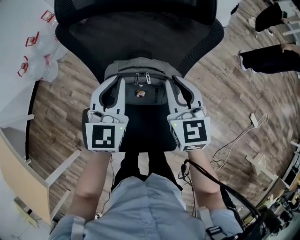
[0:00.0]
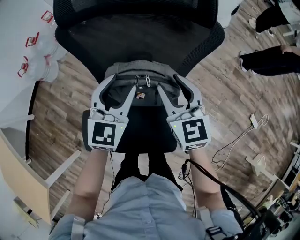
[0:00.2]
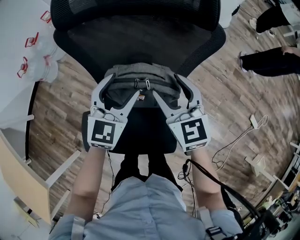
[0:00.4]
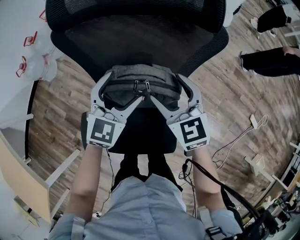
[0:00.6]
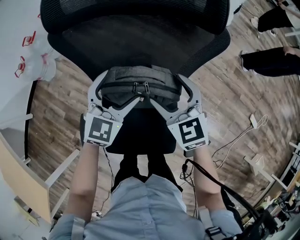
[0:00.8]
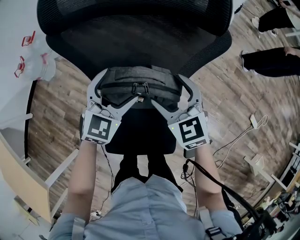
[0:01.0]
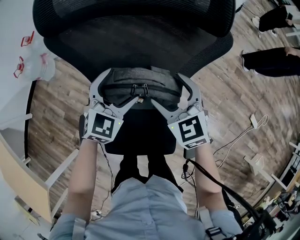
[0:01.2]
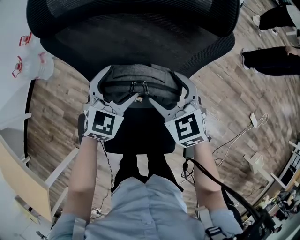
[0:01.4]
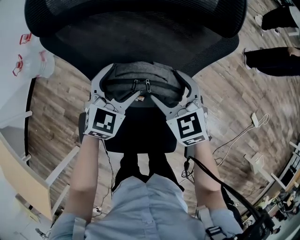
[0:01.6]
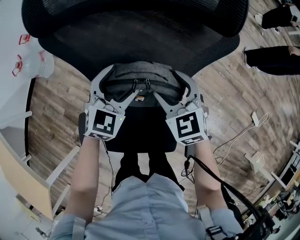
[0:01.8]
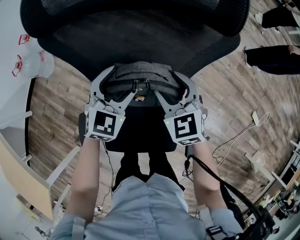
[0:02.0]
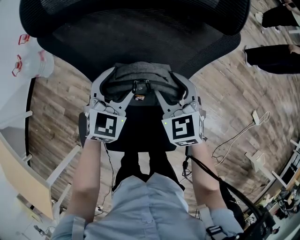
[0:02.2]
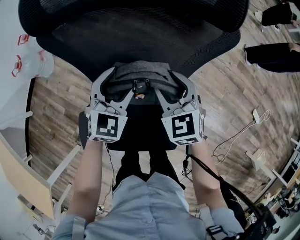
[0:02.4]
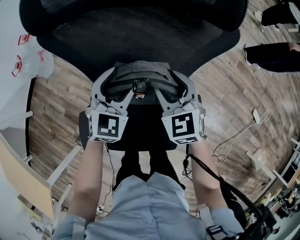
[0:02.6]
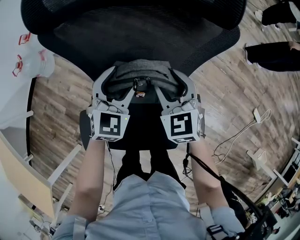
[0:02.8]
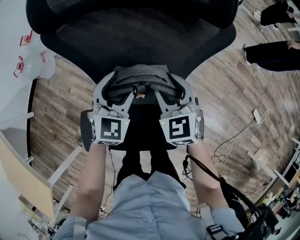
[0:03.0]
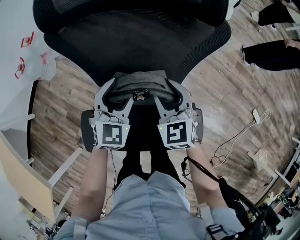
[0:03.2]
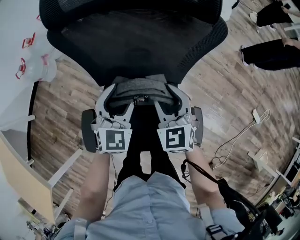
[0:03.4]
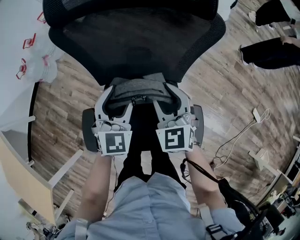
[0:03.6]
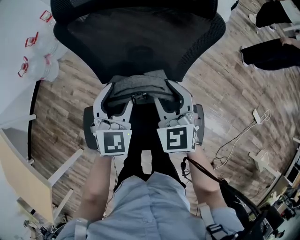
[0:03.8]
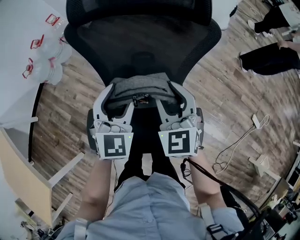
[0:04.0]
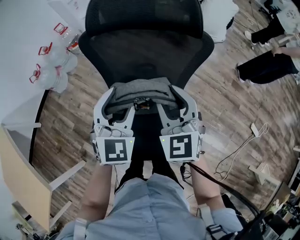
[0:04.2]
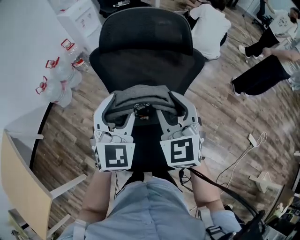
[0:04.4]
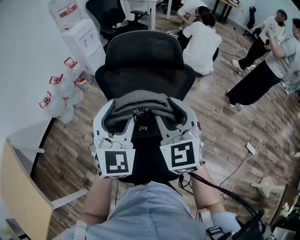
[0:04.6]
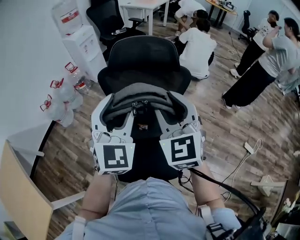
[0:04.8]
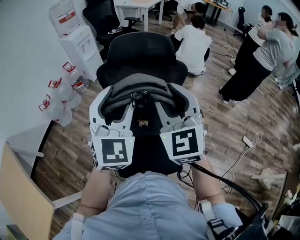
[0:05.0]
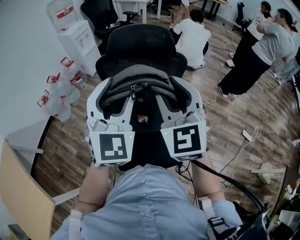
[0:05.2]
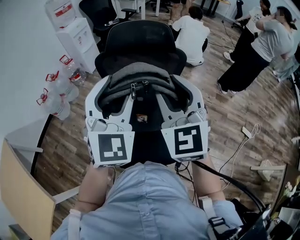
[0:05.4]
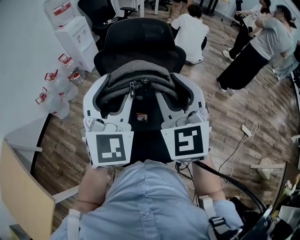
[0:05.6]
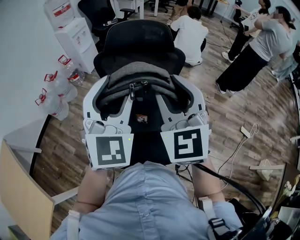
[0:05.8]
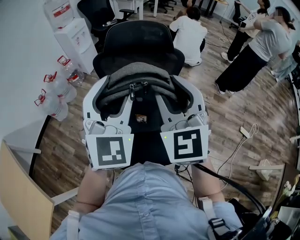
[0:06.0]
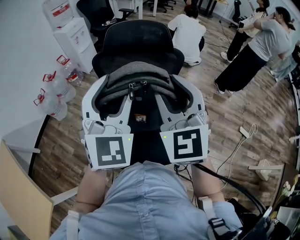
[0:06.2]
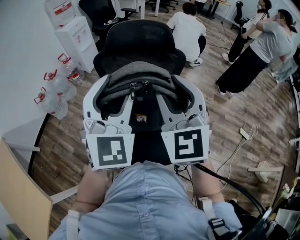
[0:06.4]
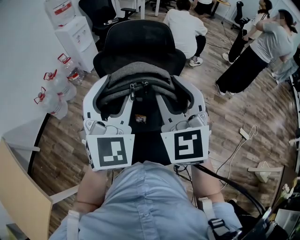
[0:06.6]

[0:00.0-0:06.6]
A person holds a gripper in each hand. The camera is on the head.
0.0 to 1.6 s: Both grippers move downward, approximately 10 cm. The right gripper swivels approximately 20 degrees, and opens; the left gripper swivels some 30 degrees, and opens.
1.6 to 3.2 s: The left gripper closes. The right gripper closes.
3.2 to 5.0 s: The grippers both shift upward by some 30 cm. The left gripper changes its angle by approximately 30 degrees. Meanwhile the right gripper turns by approximately 30 degrees.
5.0 to 6.6 s: The grippers make only small movements.

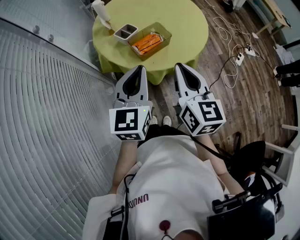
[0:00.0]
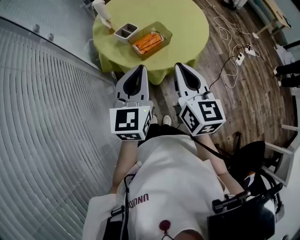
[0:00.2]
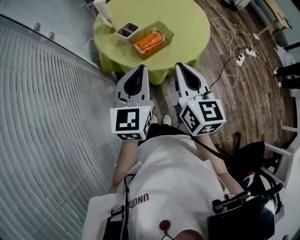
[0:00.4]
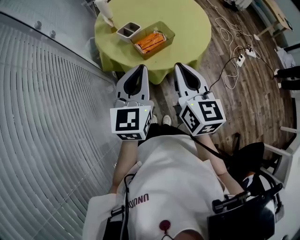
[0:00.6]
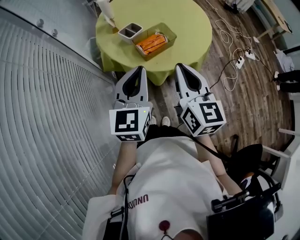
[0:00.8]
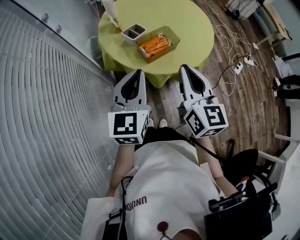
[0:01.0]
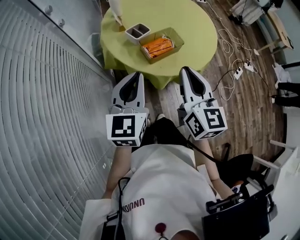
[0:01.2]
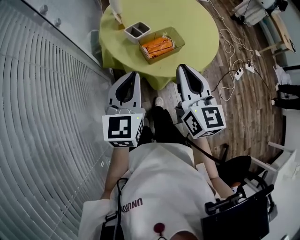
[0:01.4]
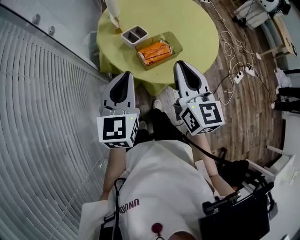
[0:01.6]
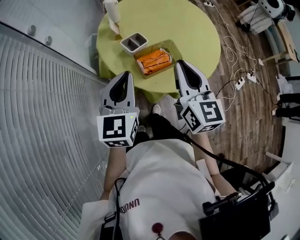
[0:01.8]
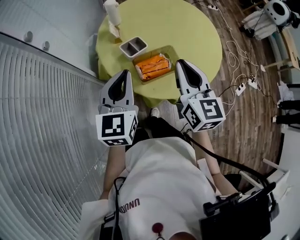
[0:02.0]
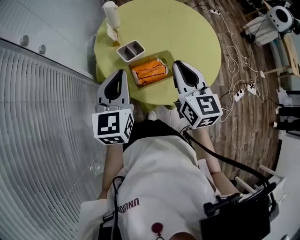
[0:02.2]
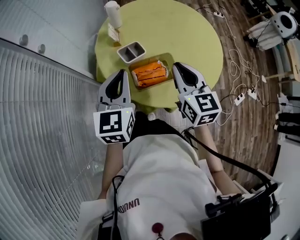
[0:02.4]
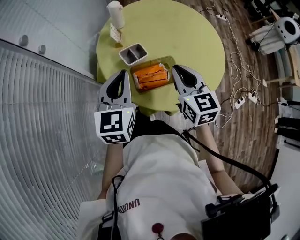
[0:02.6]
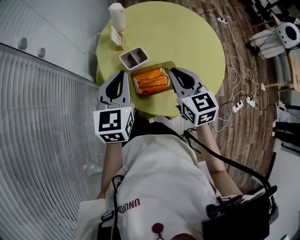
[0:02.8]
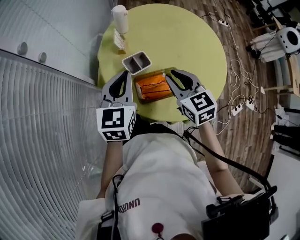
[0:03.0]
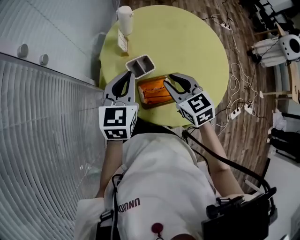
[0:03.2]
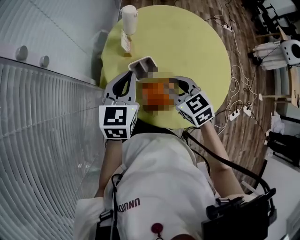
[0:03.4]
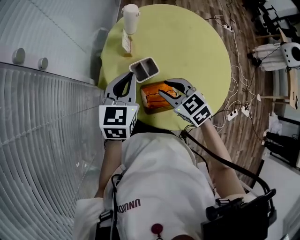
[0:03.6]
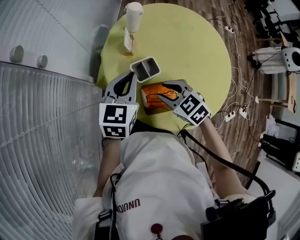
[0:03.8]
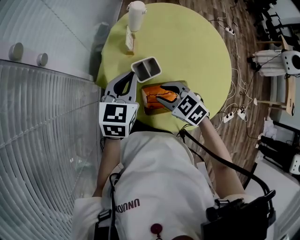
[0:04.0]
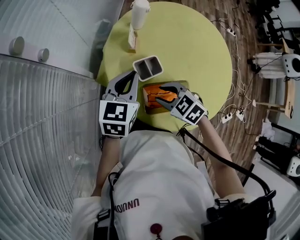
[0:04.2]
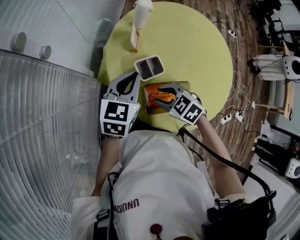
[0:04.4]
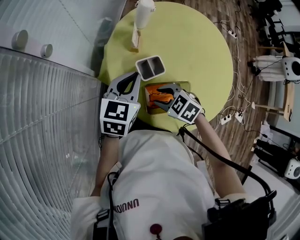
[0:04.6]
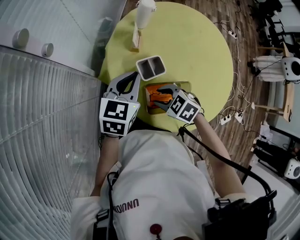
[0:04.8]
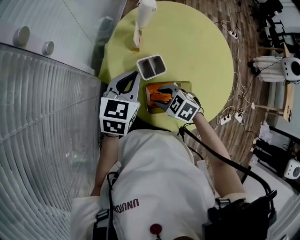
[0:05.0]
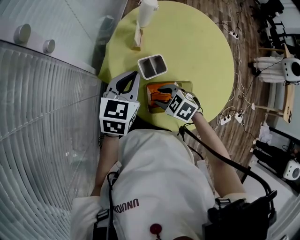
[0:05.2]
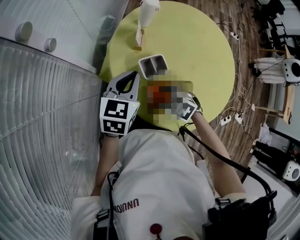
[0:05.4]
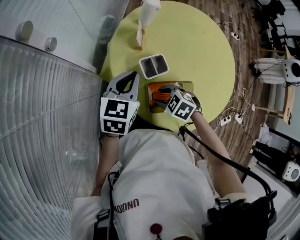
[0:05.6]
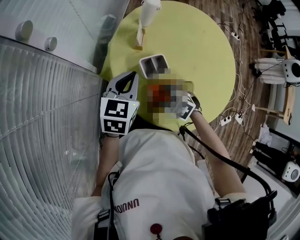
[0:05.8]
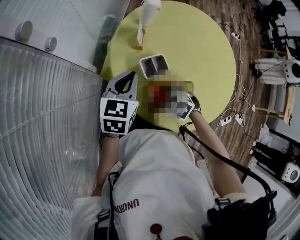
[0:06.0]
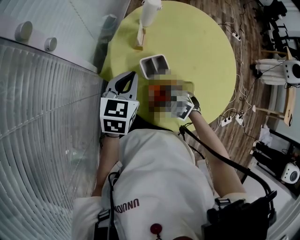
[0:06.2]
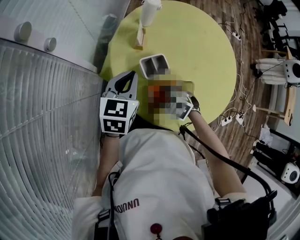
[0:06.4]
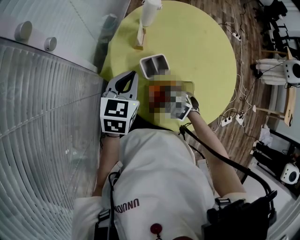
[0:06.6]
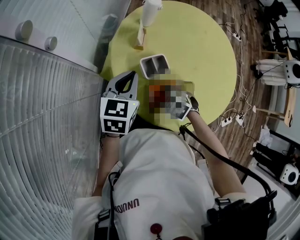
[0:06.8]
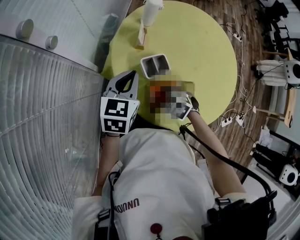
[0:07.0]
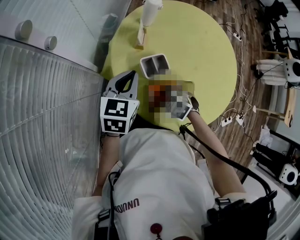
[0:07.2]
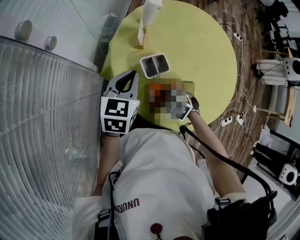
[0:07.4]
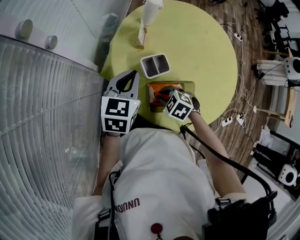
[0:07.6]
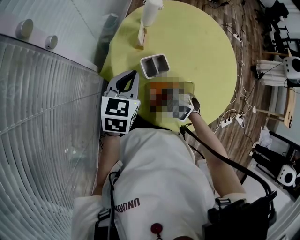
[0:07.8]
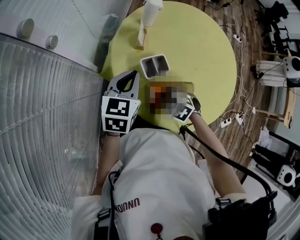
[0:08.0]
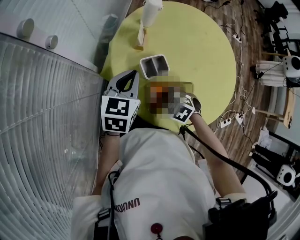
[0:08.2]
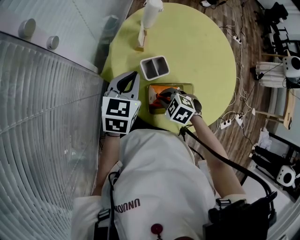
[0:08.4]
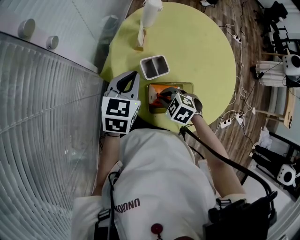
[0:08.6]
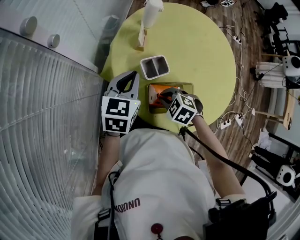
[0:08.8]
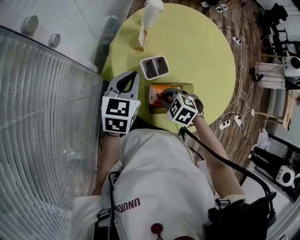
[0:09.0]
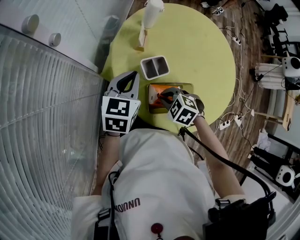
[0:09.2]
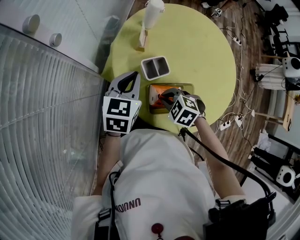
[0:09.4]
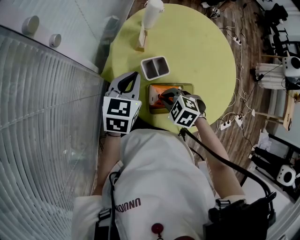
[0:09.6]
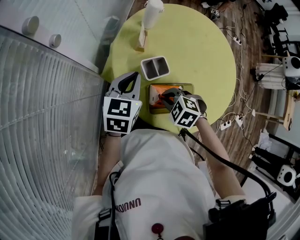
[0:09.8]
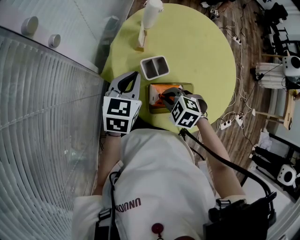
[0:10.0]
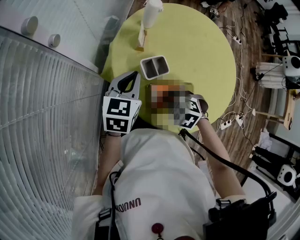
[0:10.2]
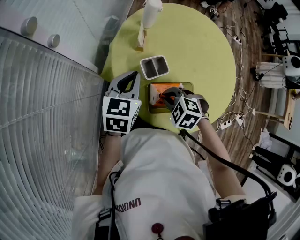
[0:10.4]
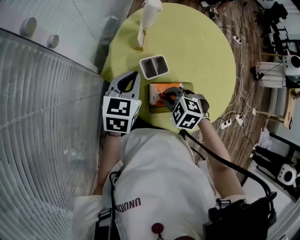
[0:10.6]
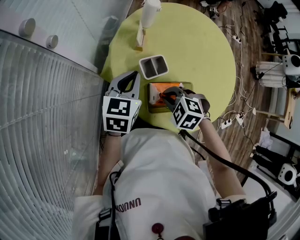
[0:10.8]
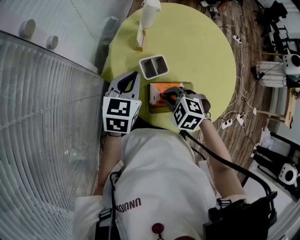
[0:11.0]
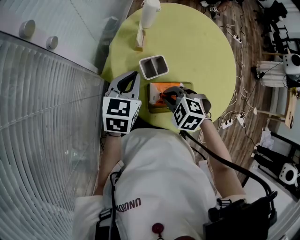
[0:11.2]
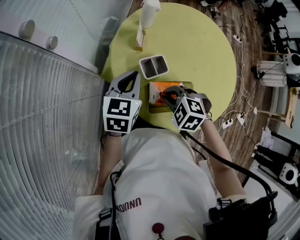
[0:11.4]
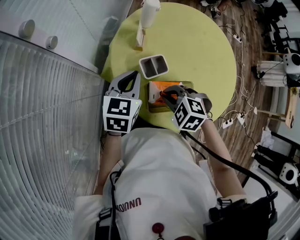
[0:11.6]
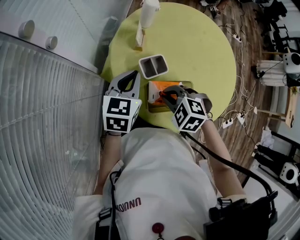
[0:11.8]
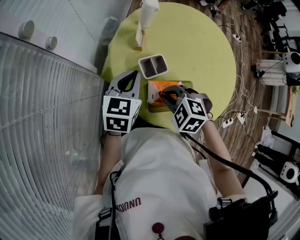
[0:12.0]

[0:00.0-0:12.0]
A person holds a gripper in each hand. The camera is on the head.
0.0 to 1.6 s: The left gripper goes some 10 cm to the left and forward; the right gripper shifts roughly 10 cm forward.
1.6 to 3.0 s: The left gripper shifts some 15 cm forward, while the right gripper heads forward and downward, covering approximately 20 cm, and changes its angle by roughly 40 degrees.
3.0 to 4.4 s: The left gripper travels downward by roughly 5 cm; the right gripper goes about 15 cm downward and to the left, swivels approximately 50 degrees, and opens its fingers.
4.4 to 6.0 s: The right gripper shifts about 5 cm downward.
6.0 to 7.6 s: The right gripper closes its fingers.
7.6 to 9.0 s: The grippers make only small movements.
9.0 to 10.4 s: There are only small adjustments of the grippers.
10.4 to 12.0 s: The grippers stay close to where they were, moving slightly.

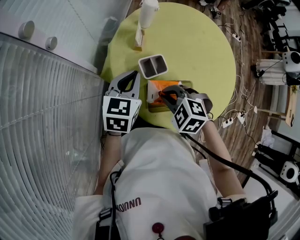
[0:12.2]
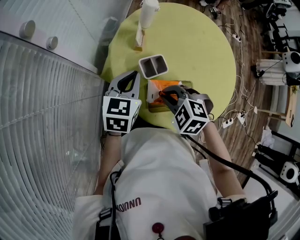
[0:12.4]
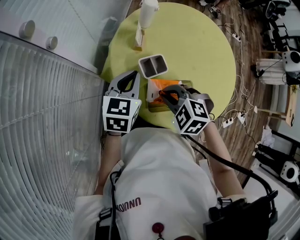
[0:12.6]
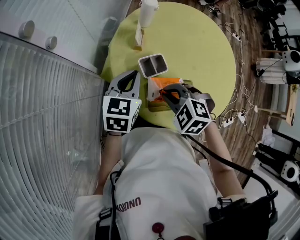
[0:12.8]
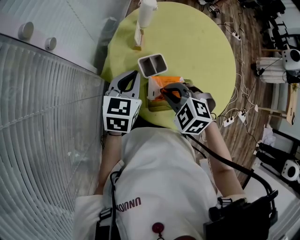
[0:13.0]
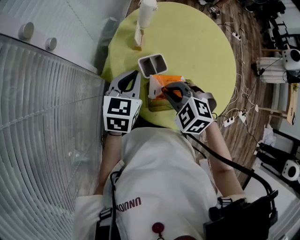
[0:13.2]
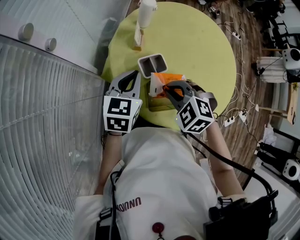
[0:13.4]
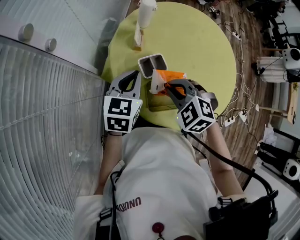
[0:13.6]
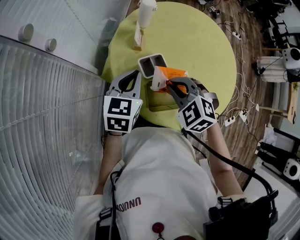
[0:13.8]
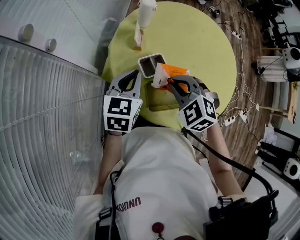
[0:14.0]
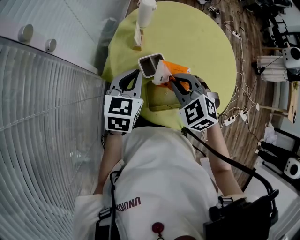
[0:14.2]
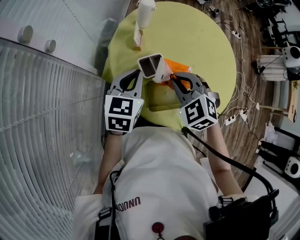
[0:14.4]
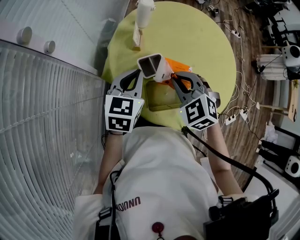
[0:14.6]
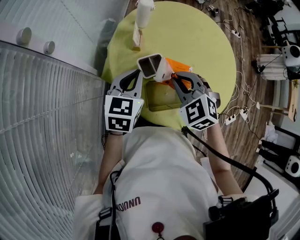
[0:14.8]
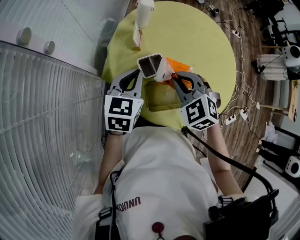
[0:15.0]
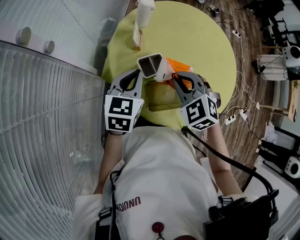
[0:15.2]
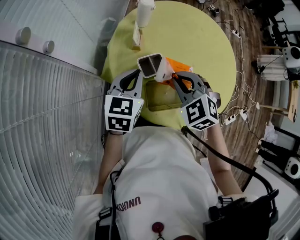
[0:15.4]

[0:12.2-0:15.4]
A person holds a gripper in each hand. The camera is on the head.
12.2 to 13.8 s: The right gripper shifts by about 5 cm.
13.8 to 15.4 s: There are only small adjustments of the grippers.

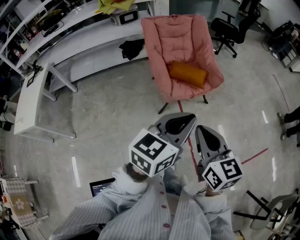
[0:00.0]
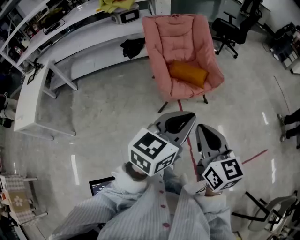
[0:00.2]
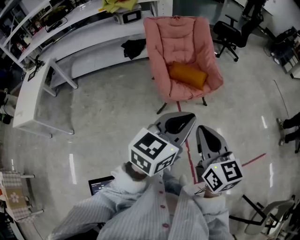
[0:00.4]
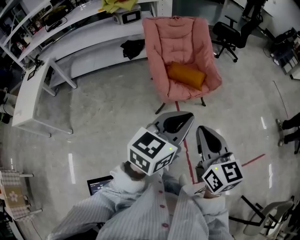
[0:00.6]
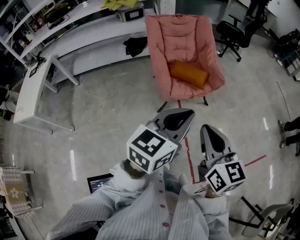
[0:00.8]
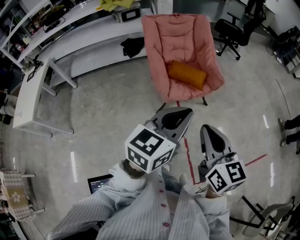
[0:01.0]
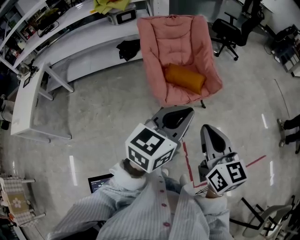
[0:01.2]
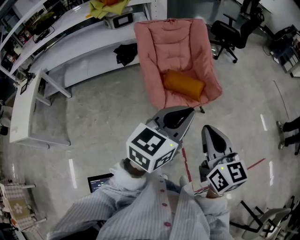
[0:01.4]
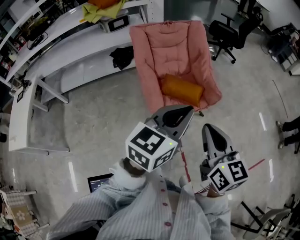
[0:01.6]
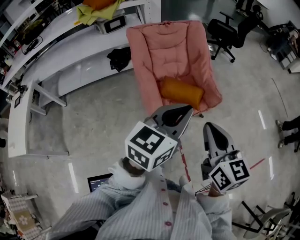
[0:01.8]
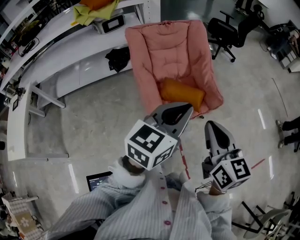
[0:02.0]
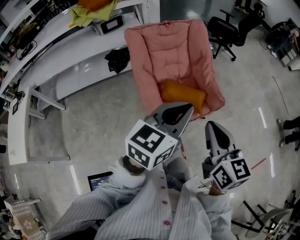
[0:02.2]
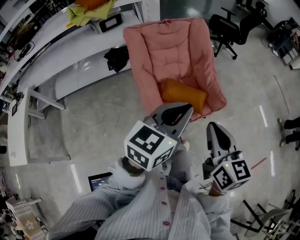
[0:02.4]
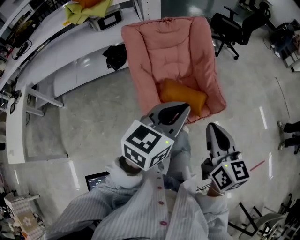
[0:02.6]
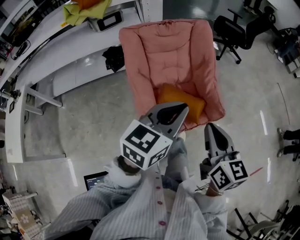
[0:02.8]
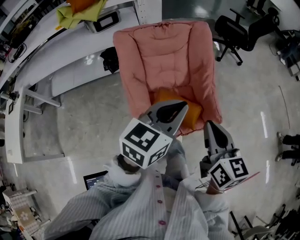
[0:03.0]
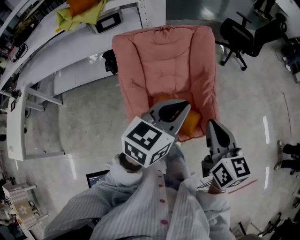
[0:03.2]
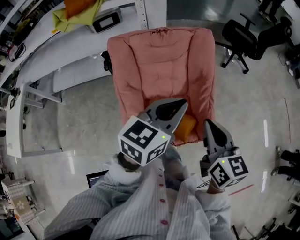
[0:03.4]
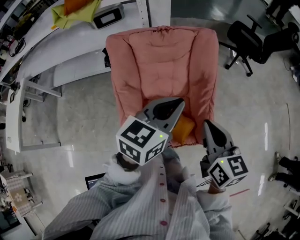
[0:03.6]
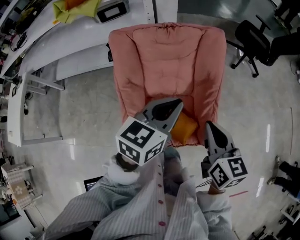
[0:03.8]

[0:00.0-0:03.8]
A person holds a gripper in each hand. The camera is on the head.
0.0 to 1.2 s: The two grippers go about 10 cm forward.
1.2 to 2.6 s: Both grippers travel together forward, roughly 30 cm.
2.6 to 3.8 s: The grippers both shift forward by approximately 30 cm.
